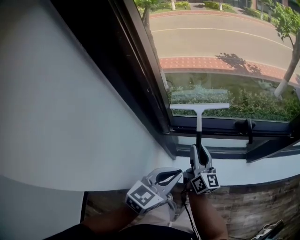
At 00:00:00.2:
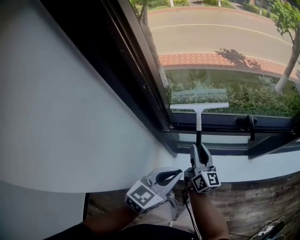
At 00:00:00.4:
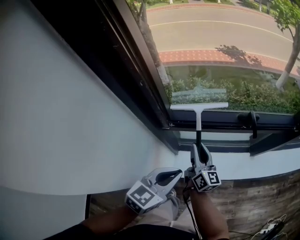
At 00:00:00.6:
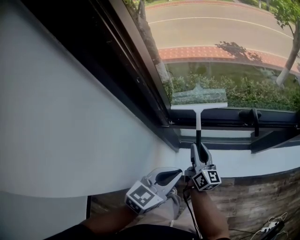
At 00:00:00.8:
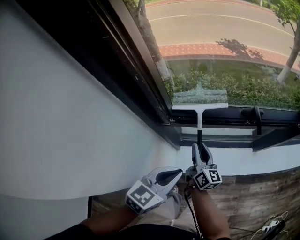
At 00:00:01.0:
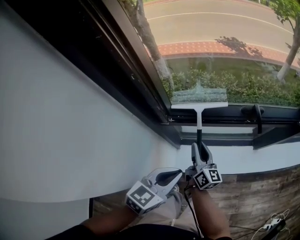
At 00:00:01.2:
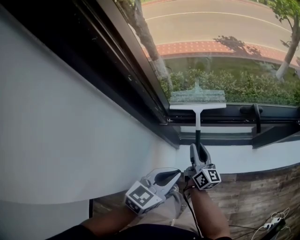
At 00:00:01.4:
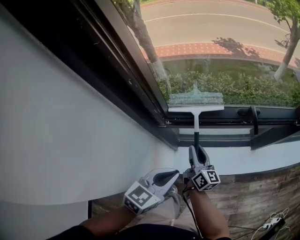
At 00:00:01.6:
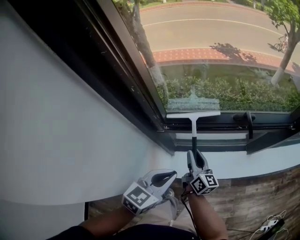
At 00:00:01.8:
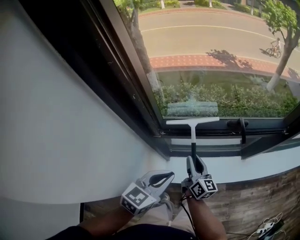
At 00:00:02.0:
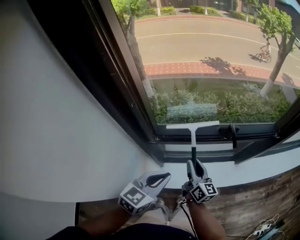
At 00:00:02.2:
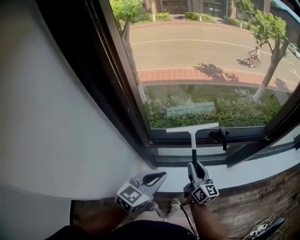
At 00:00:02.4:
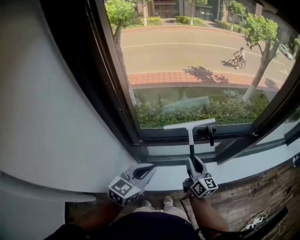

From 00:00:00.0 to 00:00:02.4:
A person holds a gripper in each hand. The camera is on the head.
From 00:00:00.0 to 00:00:01.2: The left gripper shifts some 5 cm downward. The right gripper is displaced downward by about 10 cm.
From 00:00:01.2 to 00:00:02.4: The left gripper moves upward, roughly 5 cm. Meanwhile the right gripper moves to the right and upward, about 15 cm.

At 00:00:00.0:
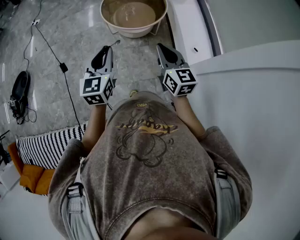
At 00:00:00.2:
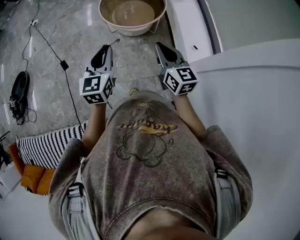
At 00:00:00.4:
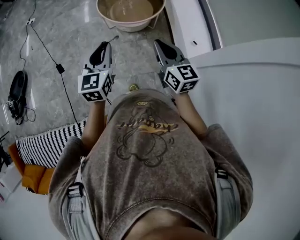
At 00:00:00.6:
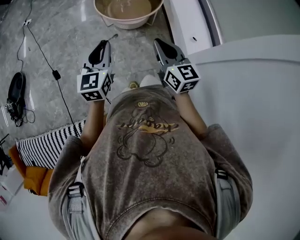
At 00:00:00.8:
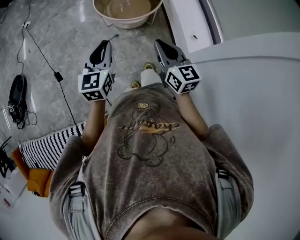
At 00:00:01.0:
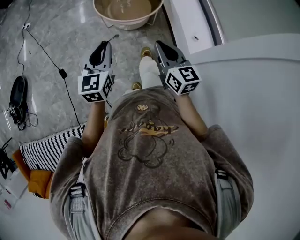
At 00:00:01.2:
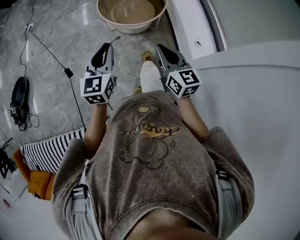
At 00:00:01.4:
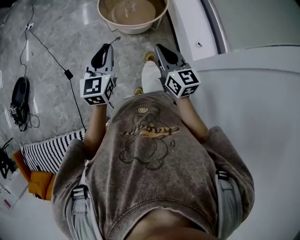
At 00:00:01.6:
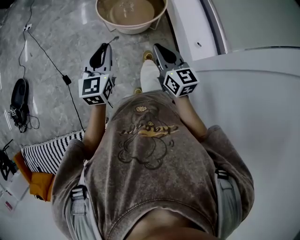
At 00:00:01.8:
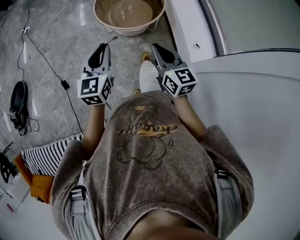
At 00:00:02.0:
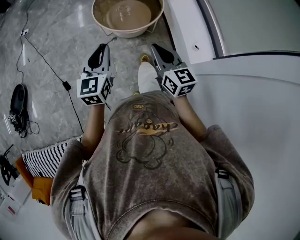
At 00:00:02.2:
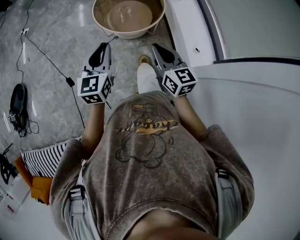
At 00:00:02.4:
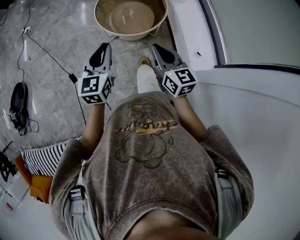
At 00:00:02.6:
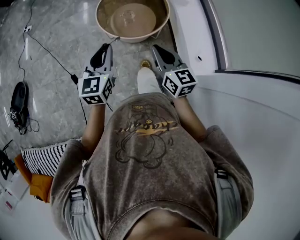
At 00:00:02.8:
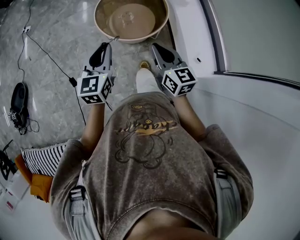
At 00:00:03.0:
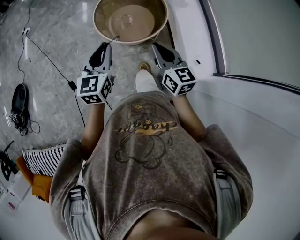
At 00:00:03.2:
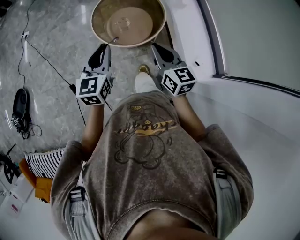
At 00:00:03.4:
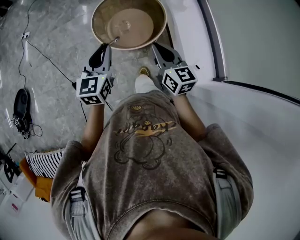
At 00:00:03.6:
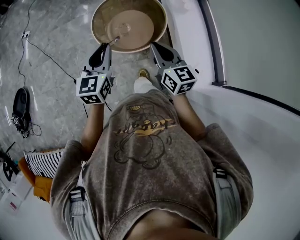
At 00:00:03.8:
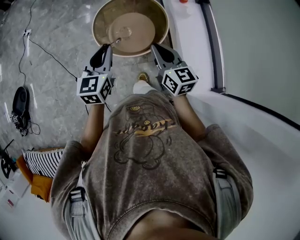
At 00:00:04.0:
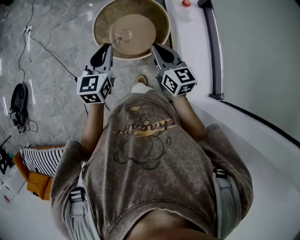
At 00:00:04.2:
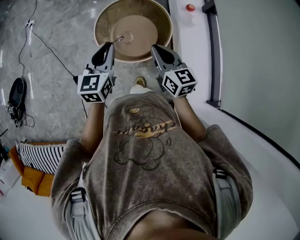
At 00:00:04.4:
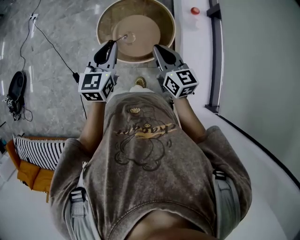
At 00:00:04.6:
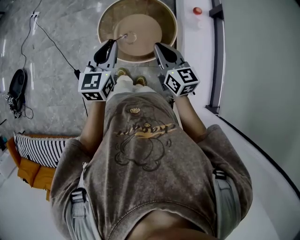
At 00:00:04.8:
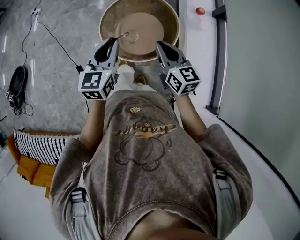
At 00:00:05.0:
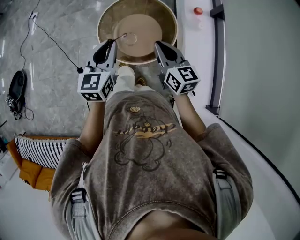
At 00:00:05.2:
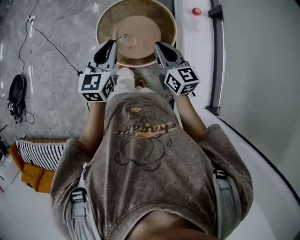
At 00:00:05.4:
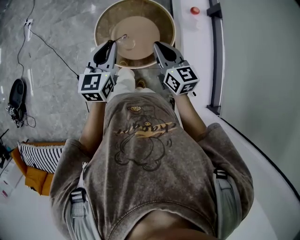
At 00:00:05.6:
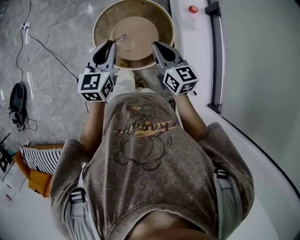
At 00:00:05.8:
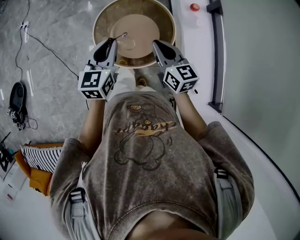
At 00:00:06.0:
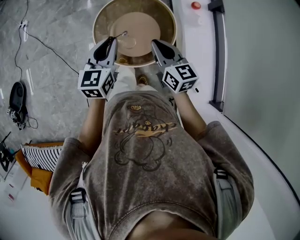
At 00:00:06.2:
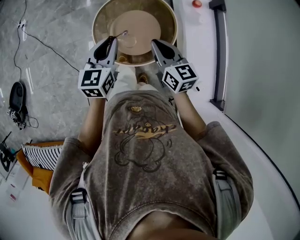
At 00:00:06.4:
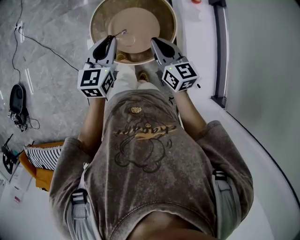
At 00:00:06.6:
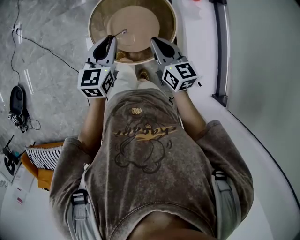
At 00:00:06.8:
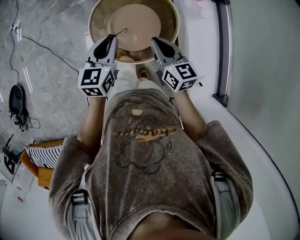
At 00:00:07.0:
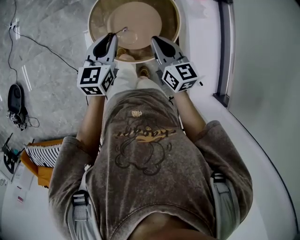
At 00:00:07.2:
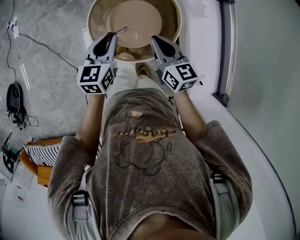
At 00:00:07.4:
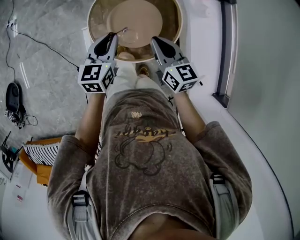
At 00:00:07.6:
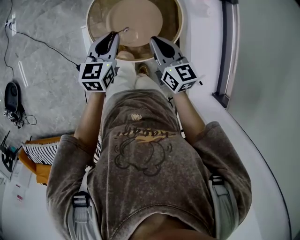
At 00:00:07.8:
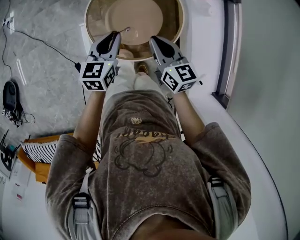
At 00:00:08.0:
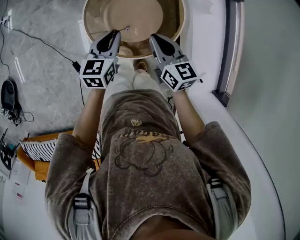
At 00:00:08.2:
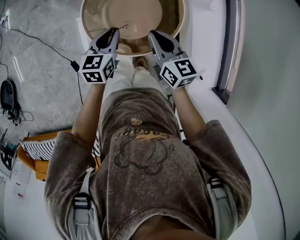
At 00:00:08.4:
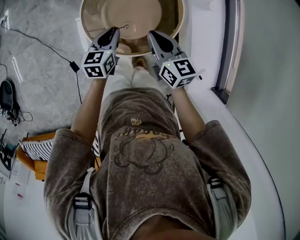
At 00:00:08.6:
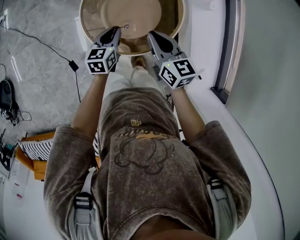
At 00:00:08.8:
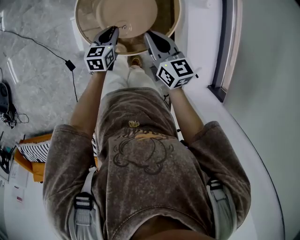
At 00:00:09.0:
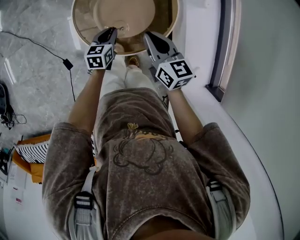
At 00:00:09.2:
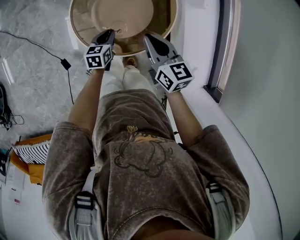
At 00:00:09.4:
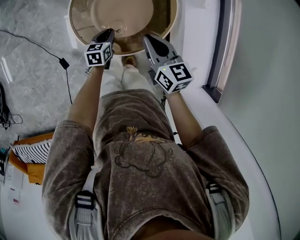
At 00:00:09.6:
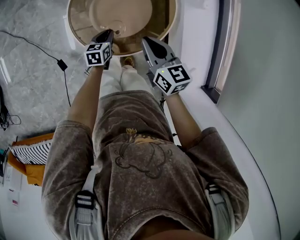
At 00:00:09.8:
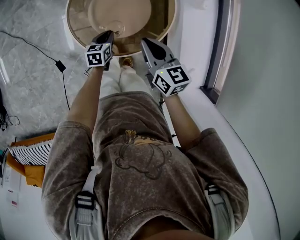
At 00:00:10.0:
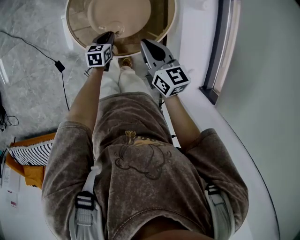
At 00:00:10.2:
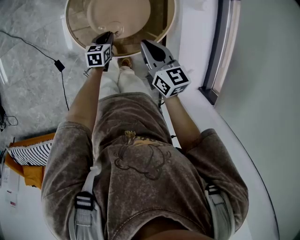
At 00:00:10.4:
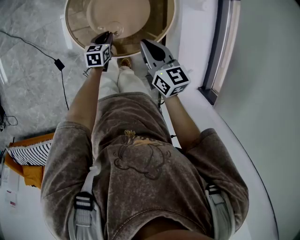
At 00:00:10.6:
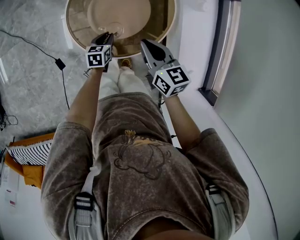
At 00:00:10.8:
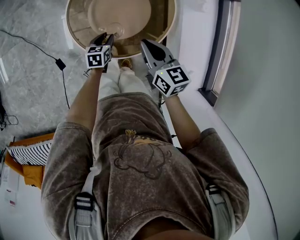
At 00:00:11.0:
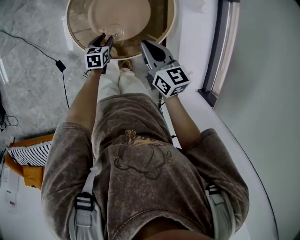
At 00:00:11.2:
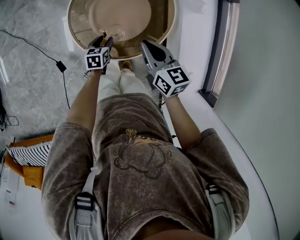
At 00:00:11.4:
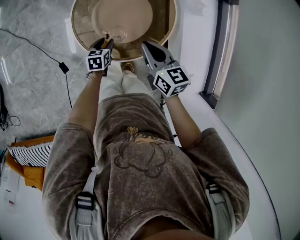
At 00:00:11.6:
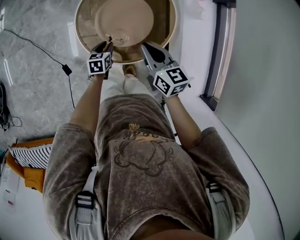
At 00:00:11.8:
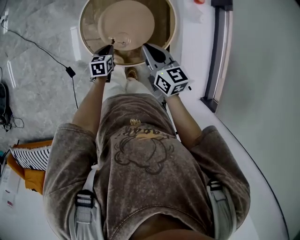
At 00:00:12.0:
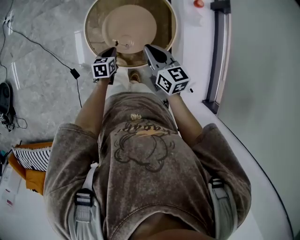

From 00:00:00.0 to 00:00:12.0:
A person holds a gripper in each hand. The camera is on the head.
From 00:00:00.0 to 00:00:01.6: The right gripper heads to the left, covering about 5 cm. The left gripper heads forward, covering roughly 5 cm.
From 00:00:01.6 to 00:00:03.0: The two grippers go some 15 cm forward.
From 00:00:03.0 to 00:00:04.4: The left gripper moves forward and to the right, roughly 20 cm. The right gripper moves forward, some 20 cm.
From 00:00:04.4 to 00:00:06.0: The grippers both shift forward by about 10 cm.
From 00:00:06.0 to 00:00:07.6: The right gripper travels downward by roughly 10 cm. Meanwhile the left gripper shifts some 15 cm downward and forward.
From 00:00:07.6 to 00:00:09.0: The left gripper goes some 20 cm downward, while the right gripper travels downward by about 5 cm.
From 00:00:09.0 to 00:00:10.4: The left gripper shifts approximately 10 cm downward.
From 00:00:10.4 to 00:00:12.0: Both grippers move upward, roughly 5 cm. The left gripper opens, then closes once more.

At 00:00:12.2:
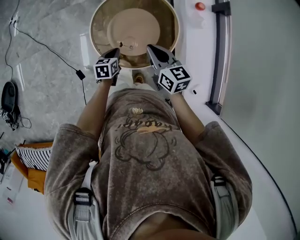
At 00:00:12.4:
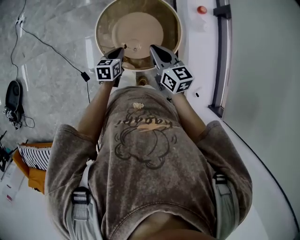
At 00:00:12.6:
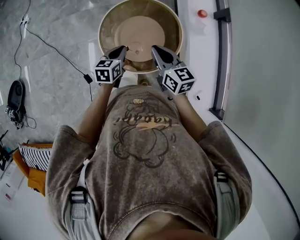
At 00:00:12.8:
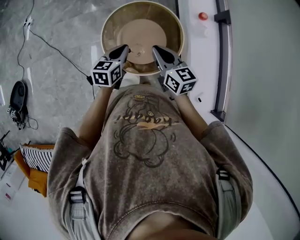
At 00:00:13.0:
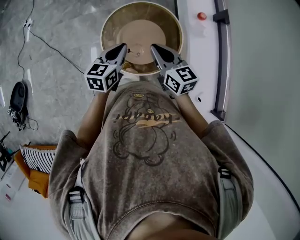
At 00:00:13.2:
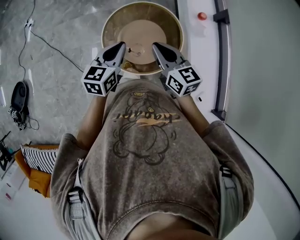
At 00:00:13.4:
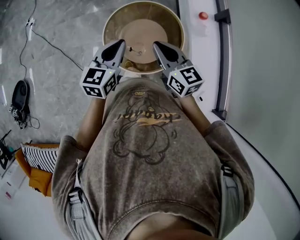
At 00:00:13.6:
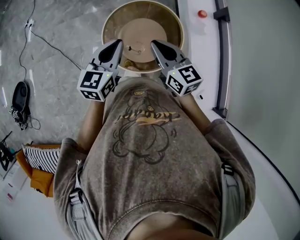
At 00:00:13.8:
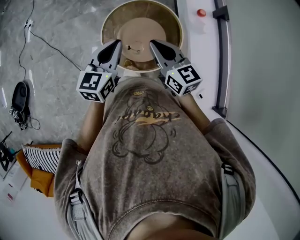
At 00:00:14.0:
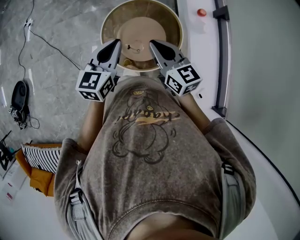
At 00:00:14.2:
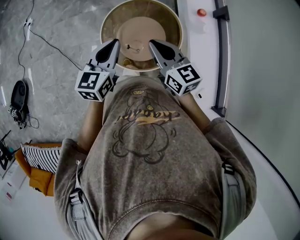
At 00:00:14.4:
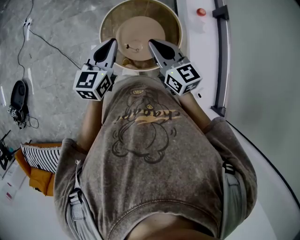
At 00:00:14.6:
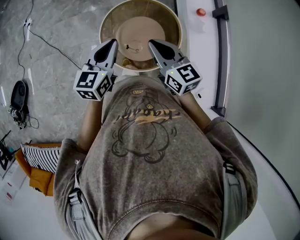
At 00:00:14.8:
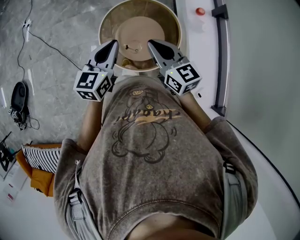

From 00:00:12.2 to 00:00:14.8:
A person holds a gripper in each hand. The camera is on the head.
From 00:00:12.2 to 00:00:13.4: The left gripper is displaced upward by approximately 30 cm, and swivels about 30 degrees; the right gripper heads upward, covering about 10 cm.
From 00:00:13.4 to 00:00:14.8: The grippers move only a little.

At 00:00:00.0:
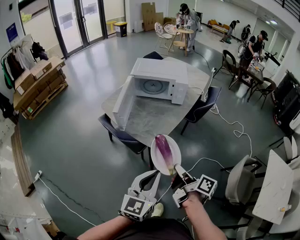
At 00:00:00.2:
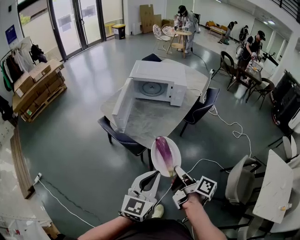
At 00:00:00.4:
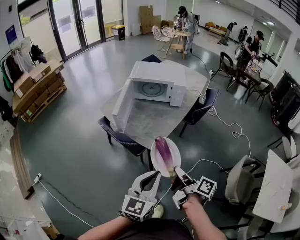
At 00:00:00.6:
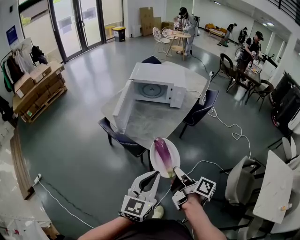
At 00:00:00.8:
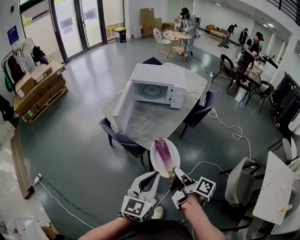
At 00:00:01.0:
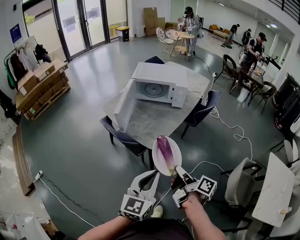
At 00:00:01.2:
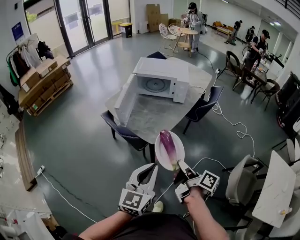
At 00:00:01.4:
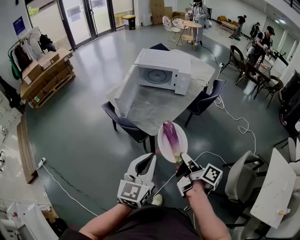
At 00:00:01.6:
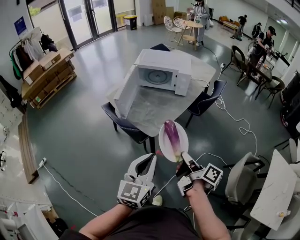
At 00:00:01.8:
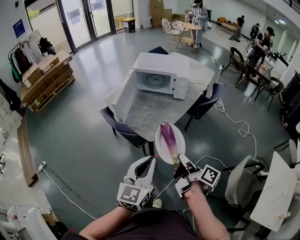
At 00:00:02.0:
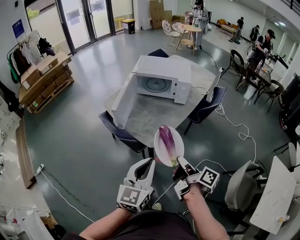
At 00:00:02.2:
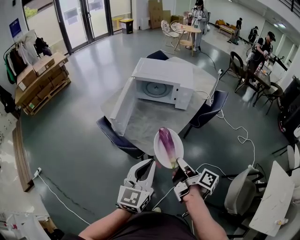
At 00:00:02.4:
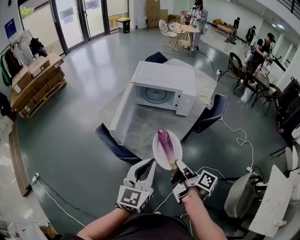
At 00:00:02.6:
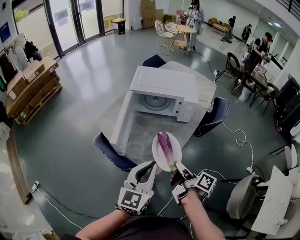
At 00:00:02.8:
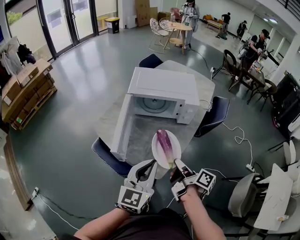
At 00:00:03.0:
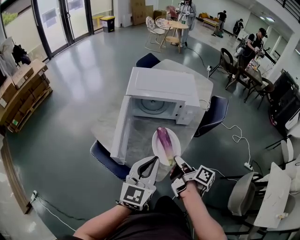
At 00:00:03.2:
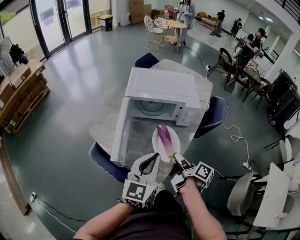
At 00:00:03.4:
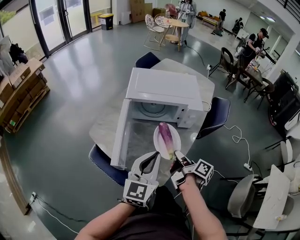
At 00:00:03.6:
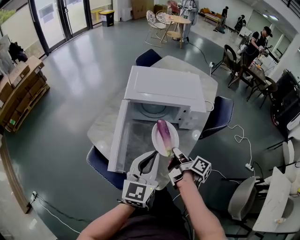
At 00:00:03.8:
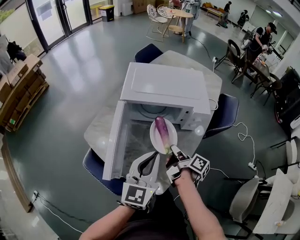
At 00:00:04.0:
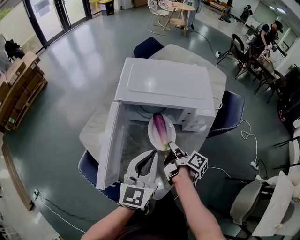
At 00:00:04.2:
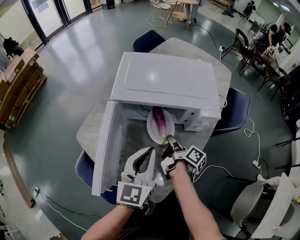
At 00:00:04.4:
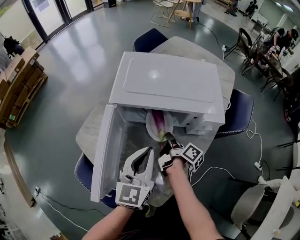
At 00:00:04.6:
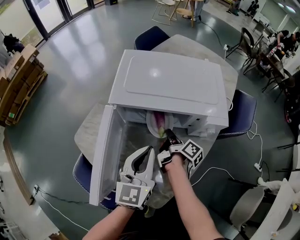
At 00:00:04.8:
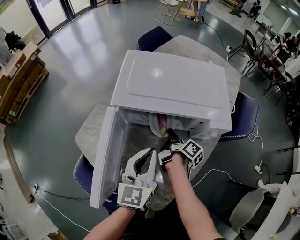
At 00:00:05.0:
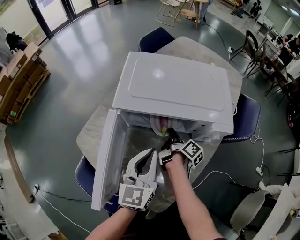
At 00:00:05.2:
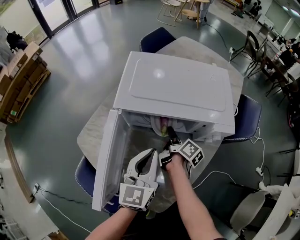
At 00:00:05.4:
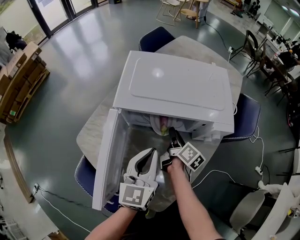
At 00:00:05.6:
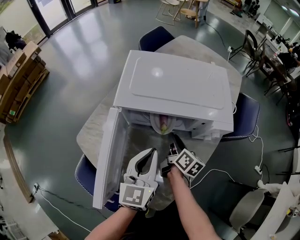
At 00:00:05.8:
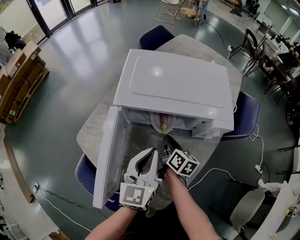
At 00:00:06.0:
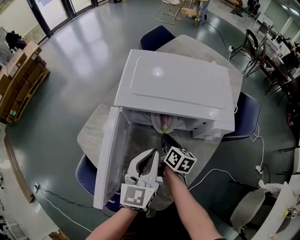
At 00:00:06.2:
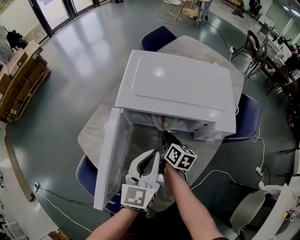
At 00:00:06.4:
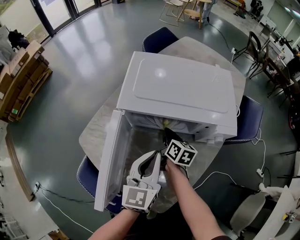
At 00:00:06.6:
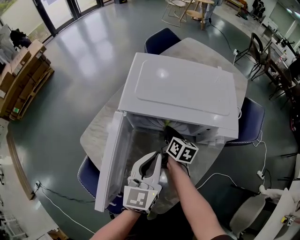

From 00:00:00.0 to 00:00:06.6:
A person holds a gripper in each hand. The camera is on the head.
From 00:00:00.0 to 00:00:01.6: The right gripper goes approximately 5 cm to the right.
From 00:00:01.6 to 00:00:03.2: Both grippers move forward, about 35 cm.
From 00:00:03.2 to 00:00:05.0: Both grippers move forward and downward, about 30 cm.
From 00:00:05.0 to 00:00:06.6: The right gripper changes place by approximately 5 cm, rolls counterclockwise, seen from behind, by roughly 40 degrees, and opens and closes again.
